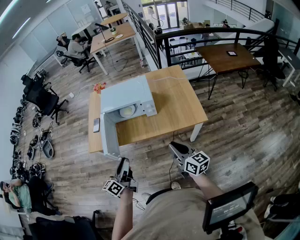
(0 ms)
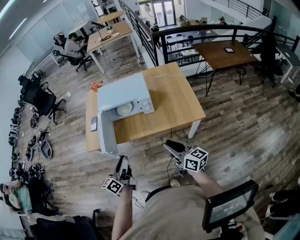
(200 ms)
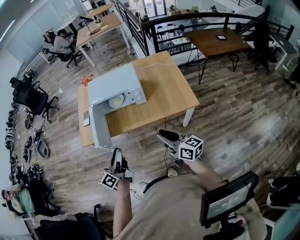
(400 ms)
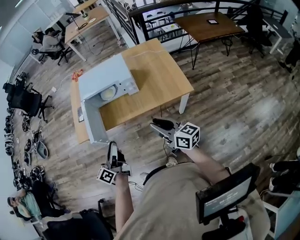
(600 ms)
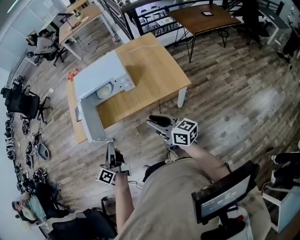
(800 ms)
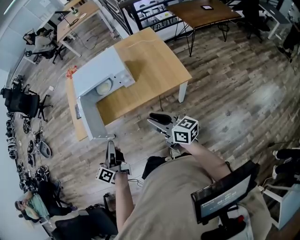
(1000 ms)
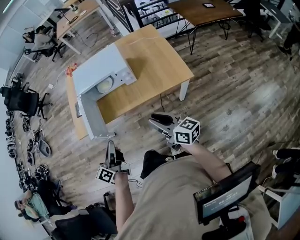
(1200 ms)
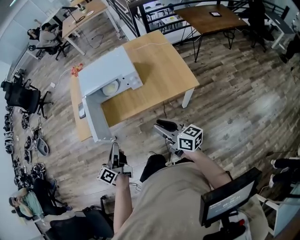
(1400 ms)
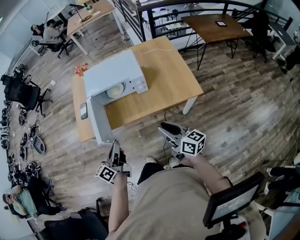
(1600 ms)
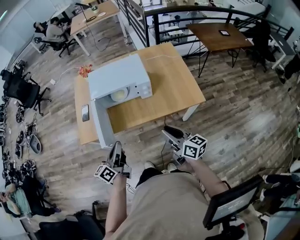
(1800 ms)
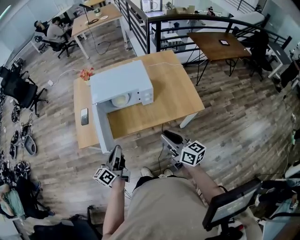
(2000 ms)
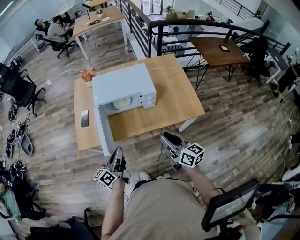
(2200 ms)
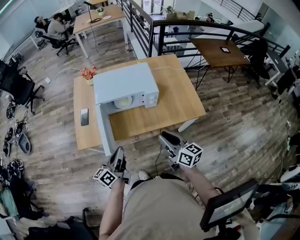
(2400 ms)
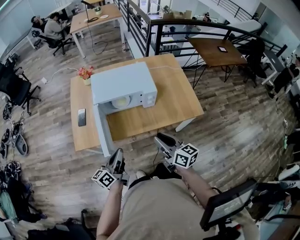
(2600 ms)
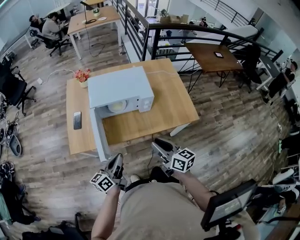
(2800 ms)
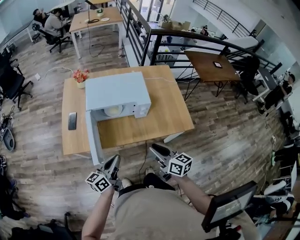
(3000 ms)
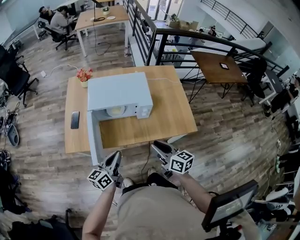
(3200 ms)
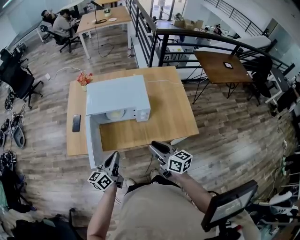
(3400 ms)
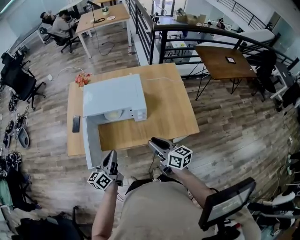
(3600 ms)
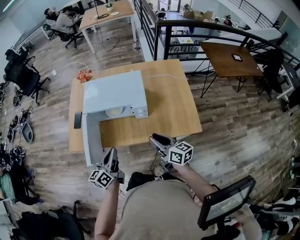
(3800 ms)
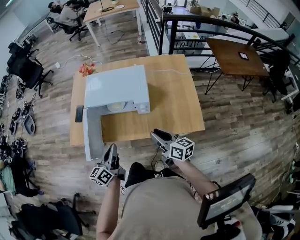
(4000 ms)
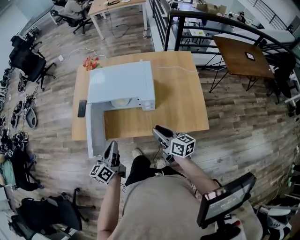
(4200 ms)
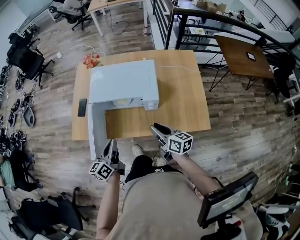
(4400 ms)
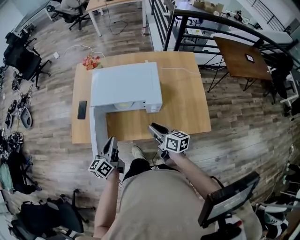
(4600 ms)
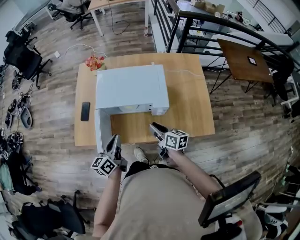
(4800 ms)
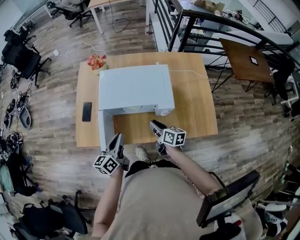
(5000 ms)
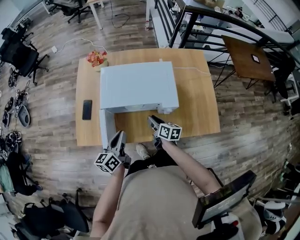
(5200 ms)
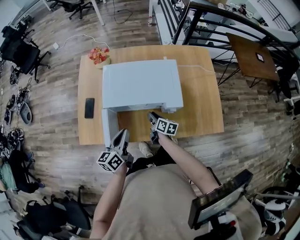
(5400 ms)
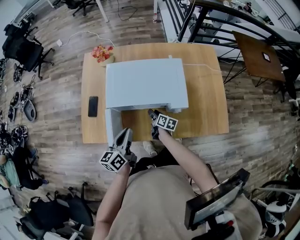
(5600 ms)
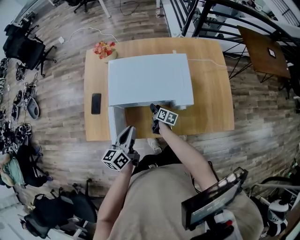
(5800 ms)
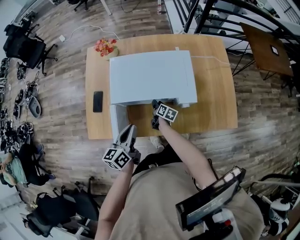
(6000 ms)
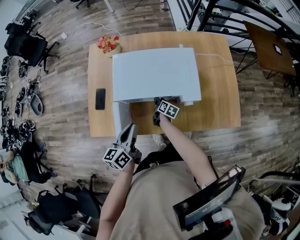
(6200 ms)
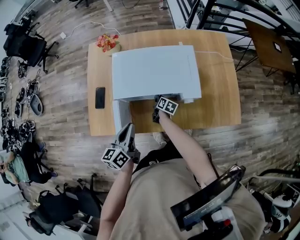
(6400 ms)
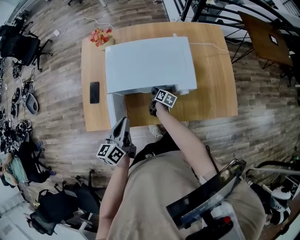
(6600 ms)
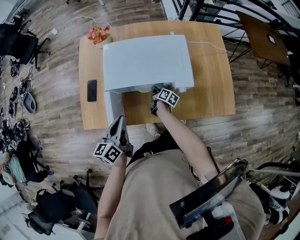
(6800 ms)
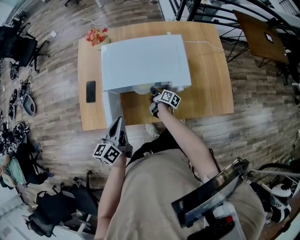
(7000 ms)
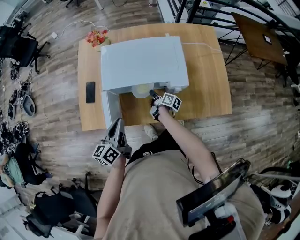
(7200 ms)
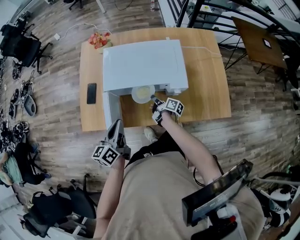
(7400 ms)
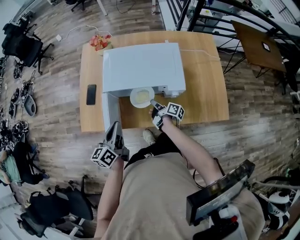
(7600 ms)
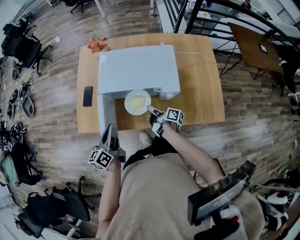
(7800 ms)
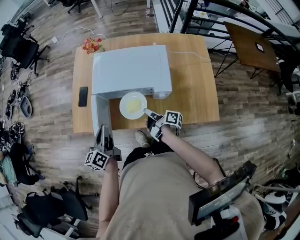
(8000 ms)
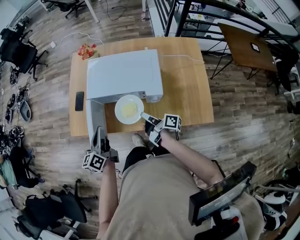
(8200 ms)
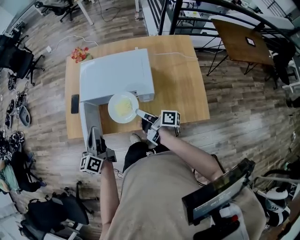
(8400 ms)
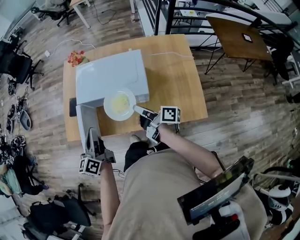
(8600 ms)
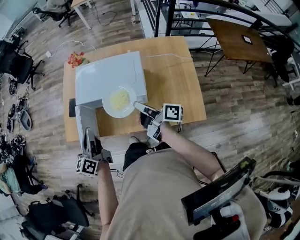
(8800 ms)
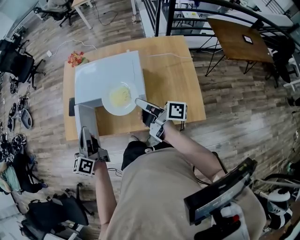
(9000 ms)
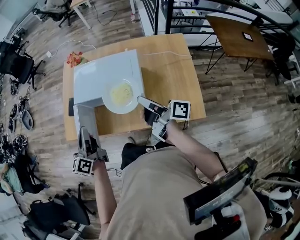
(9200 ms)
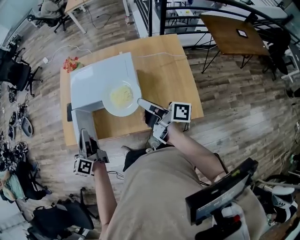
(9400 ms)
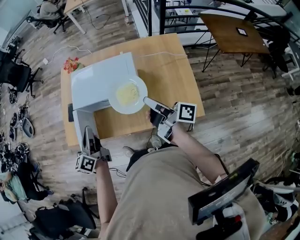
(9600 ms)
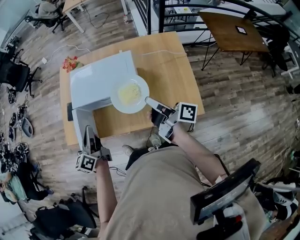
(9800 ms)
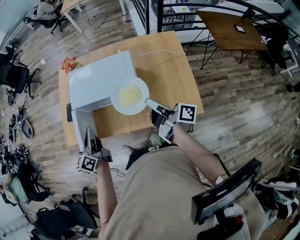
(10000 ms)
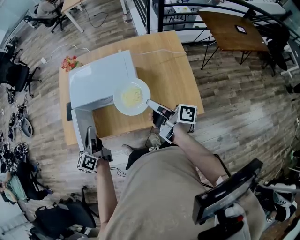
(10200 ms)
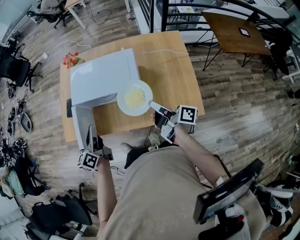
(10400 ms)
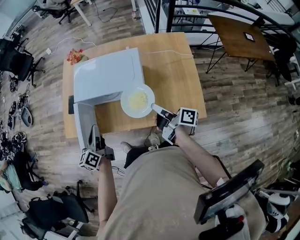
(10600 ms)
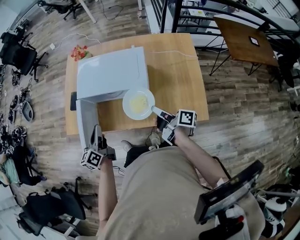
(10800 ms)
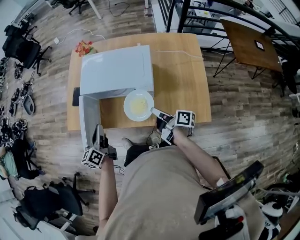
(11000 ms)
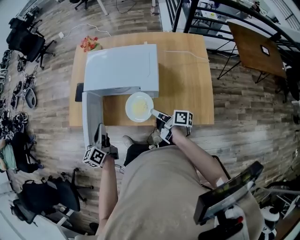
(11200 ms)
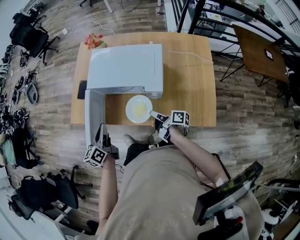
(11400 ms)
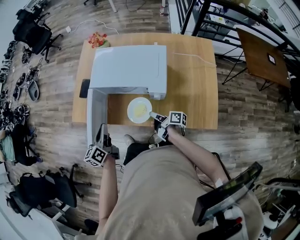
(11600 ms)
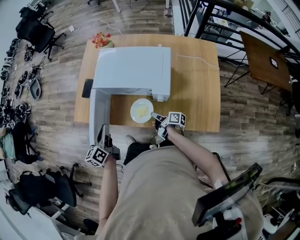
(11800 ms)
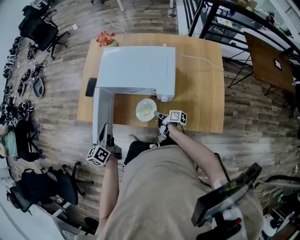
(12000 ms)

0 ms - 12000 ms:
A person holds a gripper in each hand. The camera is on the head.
0 ms - 1600 ms: The right gripper moves approximately 5 cm; the left gripper moves forward, some 5 cm, and closes up.
1600 ms - 3000 ms: The left gripper shifts about 5 cm forward, while the right gripper heads to the left and forward, covering roughly 10 cm.
3000 ms - 4400 ms: The right gripper shifts about 15 cm forward, to the right and downward. The left gripper goes roughly 10 cm forward, and swivels some 30 degrees.
4400 ms - 6000 ms: The right gripper is displaced downward, forward and to the left by about 40 cm, and changes its angle by roughly 40 degrees, while the left gripper travels forward and to the left by some 15 cm.
6000 ms - 7600 ms: The left gripper heads backward, covering about 5 cm. The right gripper is displaced upward and backward by some 10 cm, changes its angle by some 30 degrees, and closes.
7600 ms - 9000 ms: The right gripper travels upward and to the right by about 30 cm, and turns by some 30 degrees. The left gripper shifts some 15 cm upward and to the right.
9000 ms - 10400 ms: The right gripper is displaced to the right by approximately 5 cm. Meanwhile the left gripper heads downward, covering some 5 cm.
10400 ms - 12000 ms: The left gripper travels to the left and downward by approximately 10 cm; the right gripper heads downward and to the left, covering about 30 cm, and swivels approximately 30 degrees.

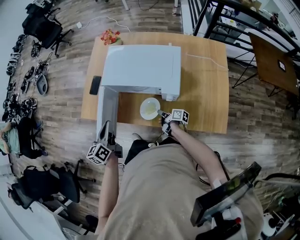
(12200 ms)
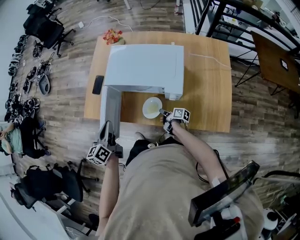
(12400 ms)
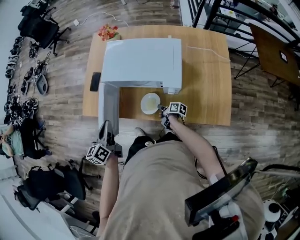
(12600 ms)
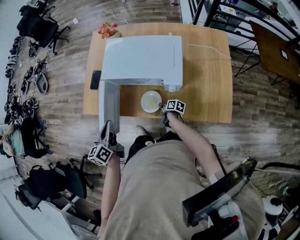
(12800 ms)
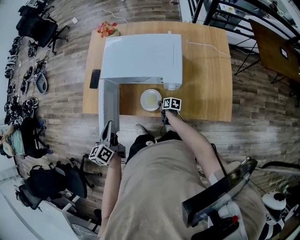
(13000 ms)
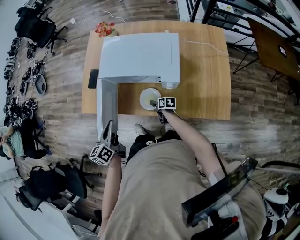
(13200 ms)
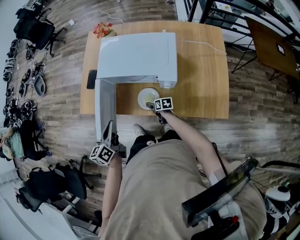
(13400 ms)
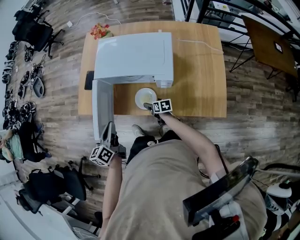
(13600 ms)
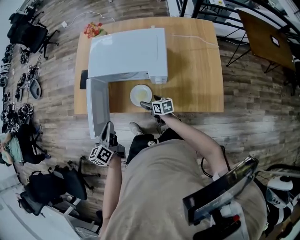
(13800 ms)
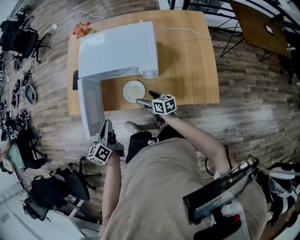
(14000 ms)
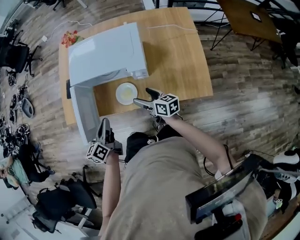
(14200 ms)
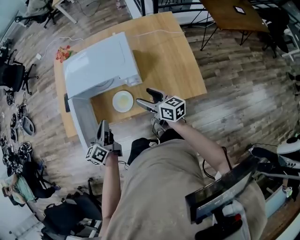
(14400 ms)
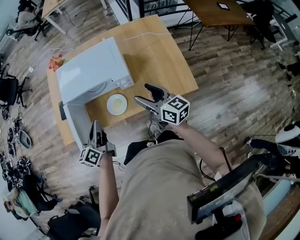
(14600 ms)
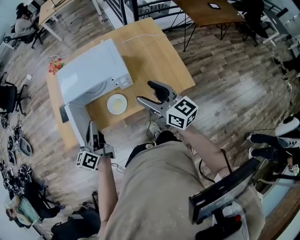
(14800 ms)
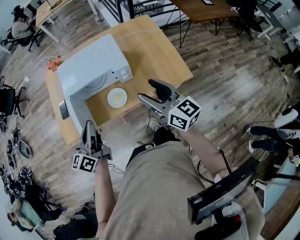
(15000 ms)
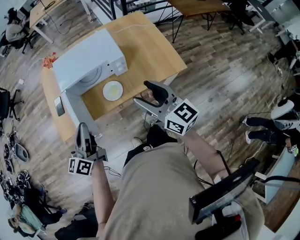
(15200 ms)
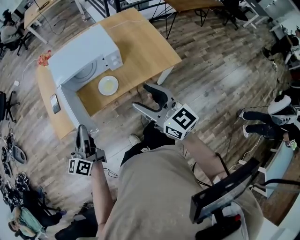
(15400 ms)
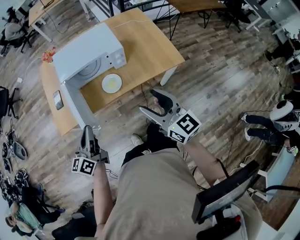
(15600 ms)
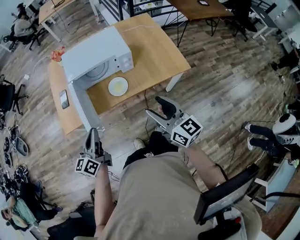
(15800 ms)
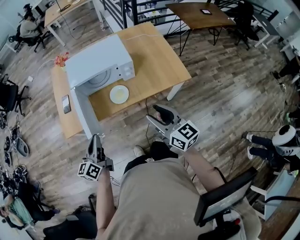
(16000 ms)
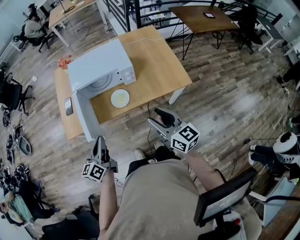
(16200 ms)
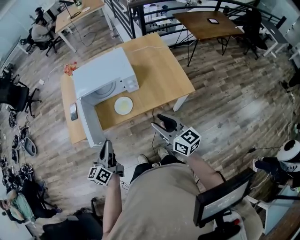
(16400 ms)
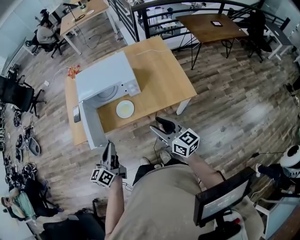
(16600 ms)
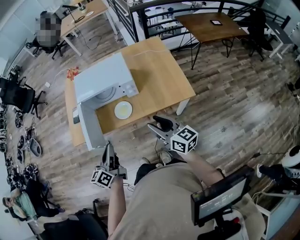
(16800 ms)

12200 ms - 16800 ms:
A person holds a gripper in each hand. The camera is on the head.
12200 ms - 13800 ms: The right gripper moves approximately 5 cm downward and comes back, changes its angle by approximately 40 degrees, and opens; the left gripper shifts approximately 5 cm backward.
13800 ms - 15200 ms: The left gripper moves upward, about 15 cm, and swivels some 30 degrees, while the right gripper goes about 40 cm upward, and tilts its fingers some 30 degrees upward.
15200 ms - 16800 ms: The right gripper heads to the right, downward and backward, covering about 10 cm. The left gripper moves to the right and backward, roughly 15 cm.

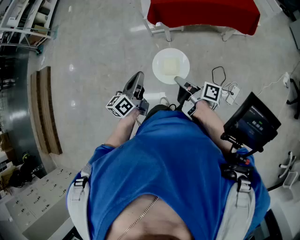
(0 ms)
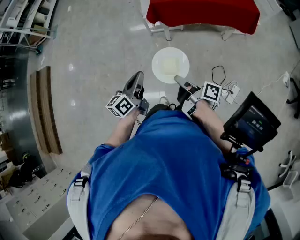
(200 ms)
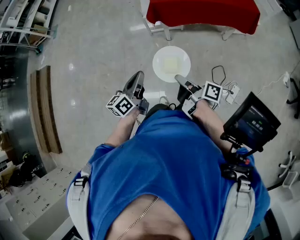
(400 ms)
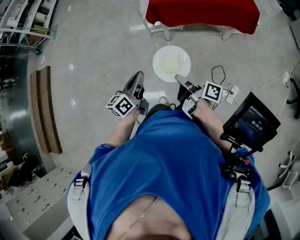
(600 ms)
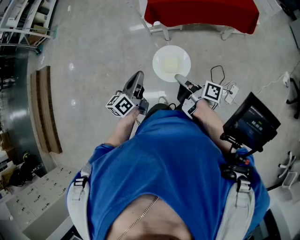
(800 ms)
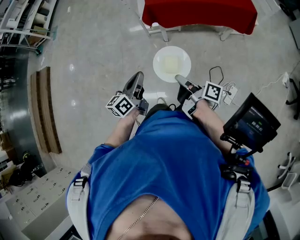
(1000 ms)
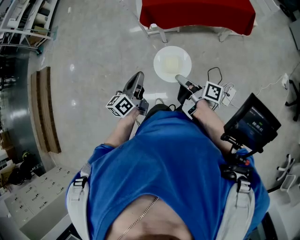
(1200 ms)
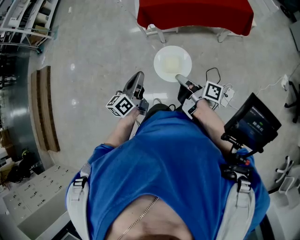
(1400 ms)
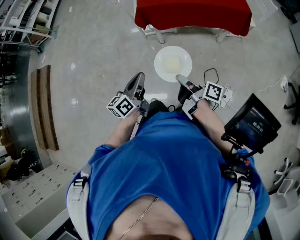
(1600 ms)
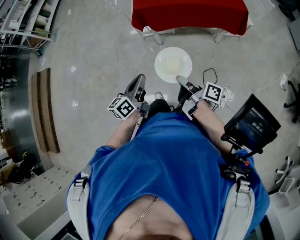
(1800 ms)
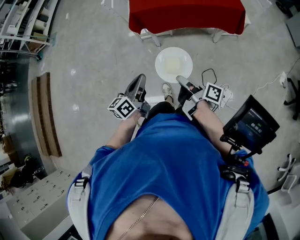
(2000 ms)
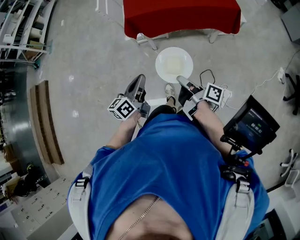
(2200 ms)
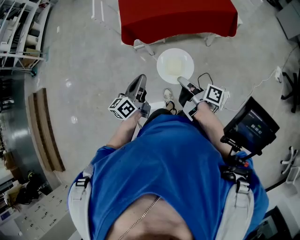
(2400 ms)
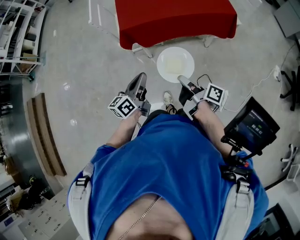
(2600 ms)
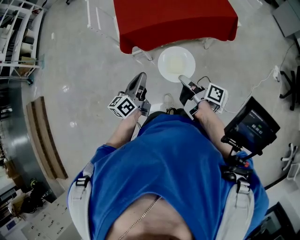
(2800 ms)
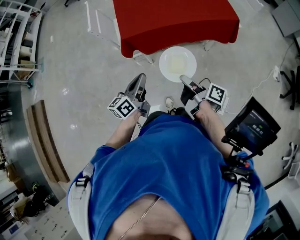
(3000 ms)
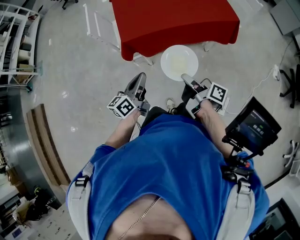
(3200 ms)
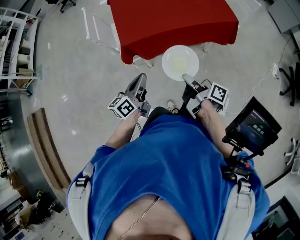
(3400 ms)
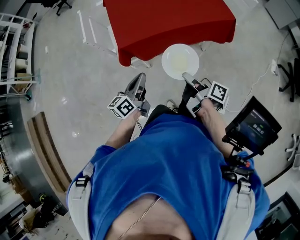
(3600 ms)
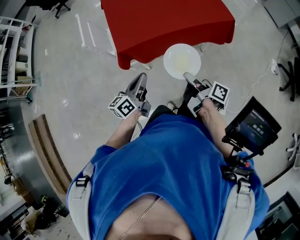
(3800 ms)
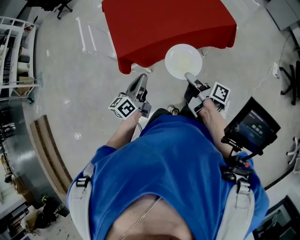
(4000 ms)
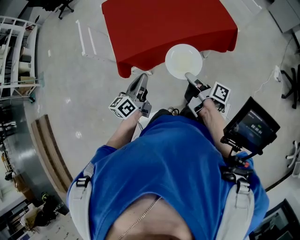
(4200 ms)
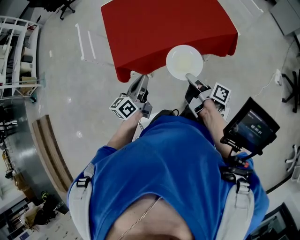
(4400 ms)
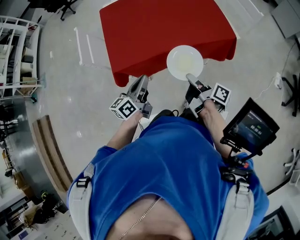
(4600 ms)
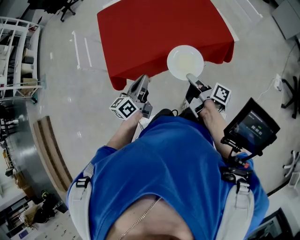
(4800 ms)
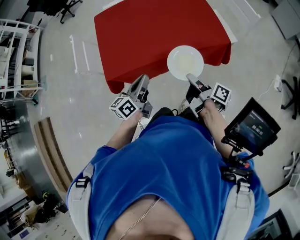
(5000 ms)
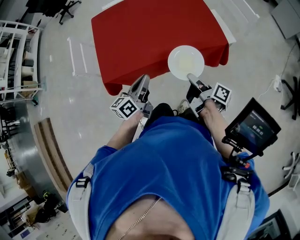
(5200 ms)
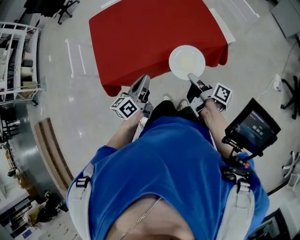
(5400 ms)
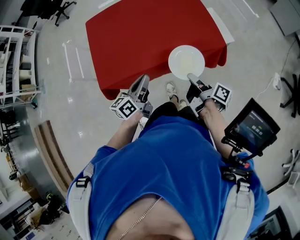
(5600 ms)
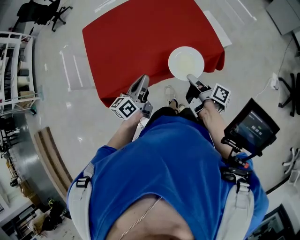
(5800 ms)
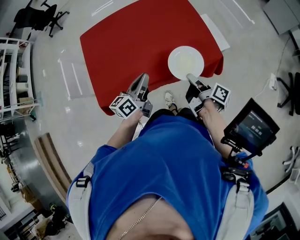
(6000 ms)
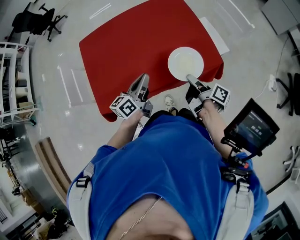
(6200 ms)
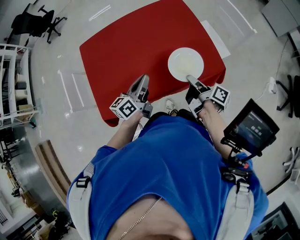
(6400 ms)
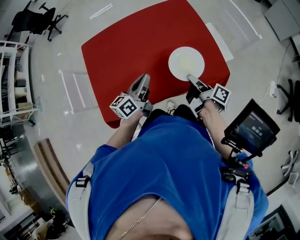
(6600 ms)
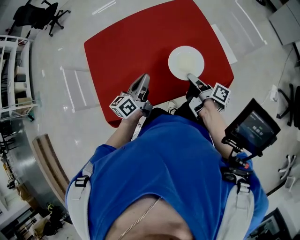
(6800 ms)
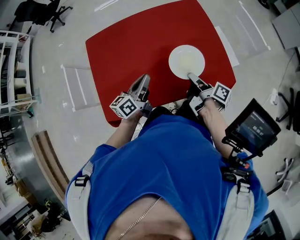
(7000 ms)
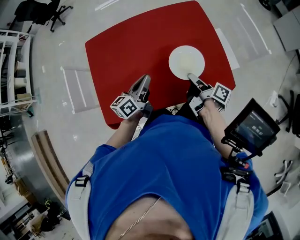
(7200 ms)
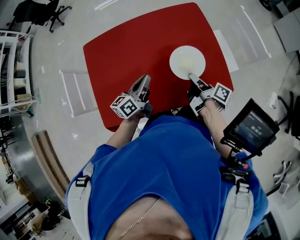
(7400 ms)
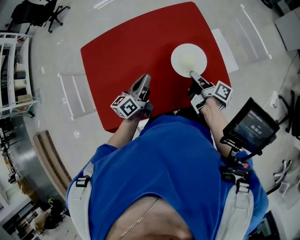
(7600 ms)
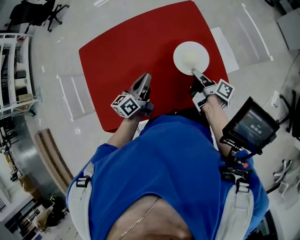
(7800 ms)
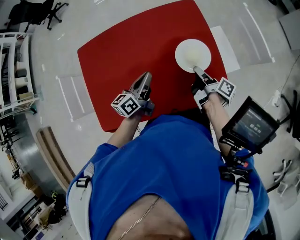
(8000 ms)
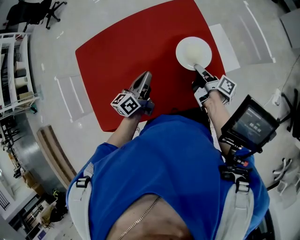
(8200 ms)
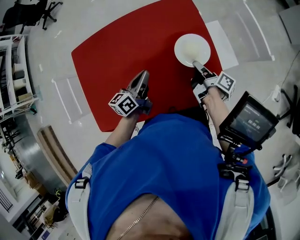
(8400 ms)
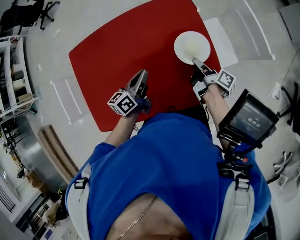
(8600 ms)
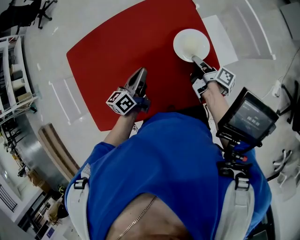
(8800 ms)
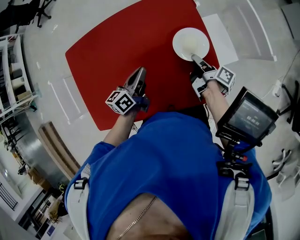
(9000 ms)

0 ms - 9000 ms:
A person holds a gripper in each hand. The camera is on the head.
1600 ms - 3000 ms: The left gripper ends up some 10 cm from where it was.
4400 ms - 6000 ms: The left gripper changes place by about 5 cm.
